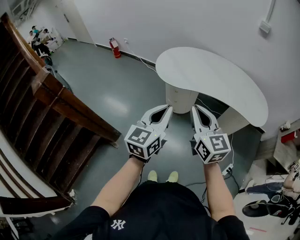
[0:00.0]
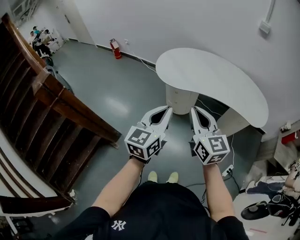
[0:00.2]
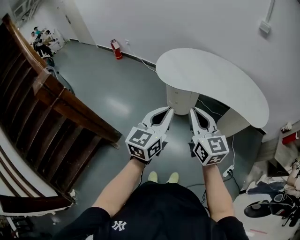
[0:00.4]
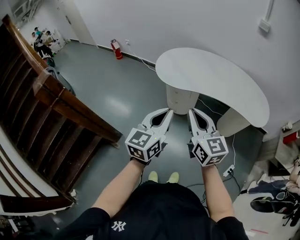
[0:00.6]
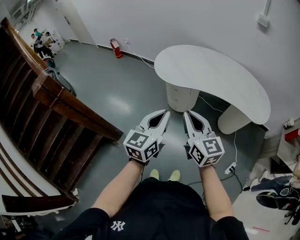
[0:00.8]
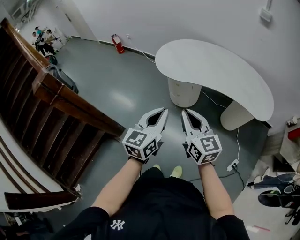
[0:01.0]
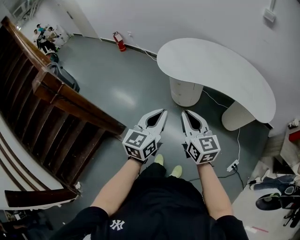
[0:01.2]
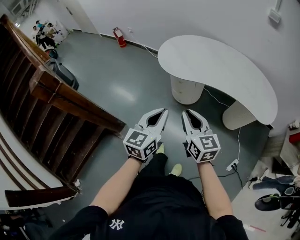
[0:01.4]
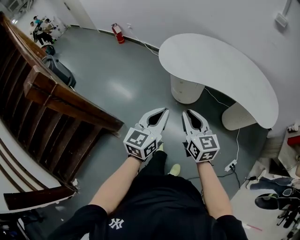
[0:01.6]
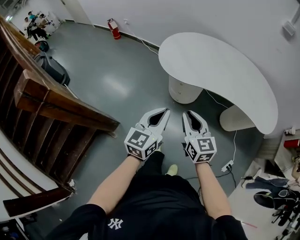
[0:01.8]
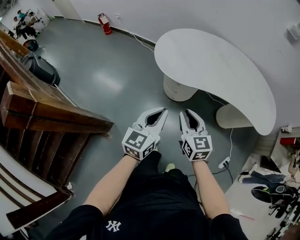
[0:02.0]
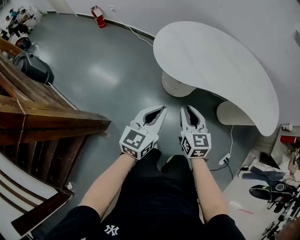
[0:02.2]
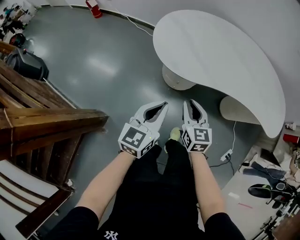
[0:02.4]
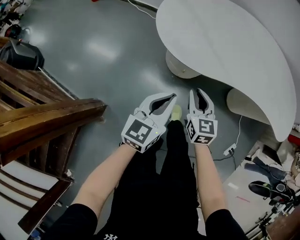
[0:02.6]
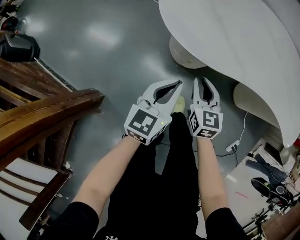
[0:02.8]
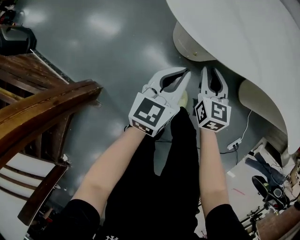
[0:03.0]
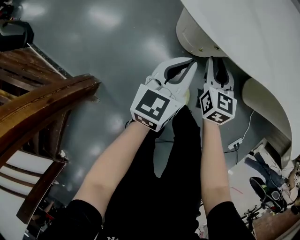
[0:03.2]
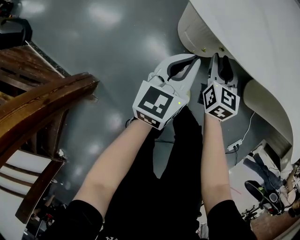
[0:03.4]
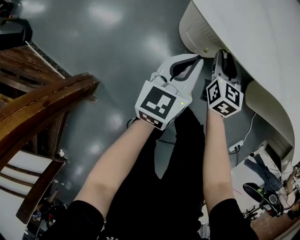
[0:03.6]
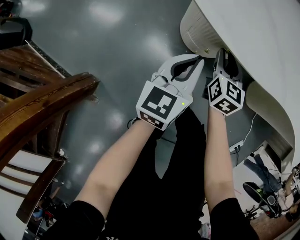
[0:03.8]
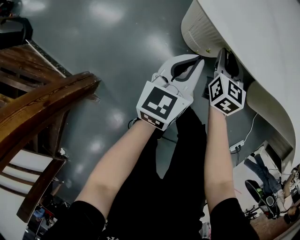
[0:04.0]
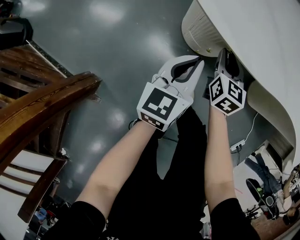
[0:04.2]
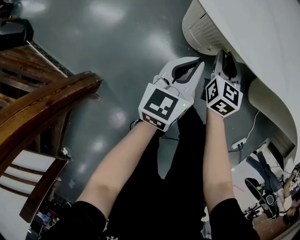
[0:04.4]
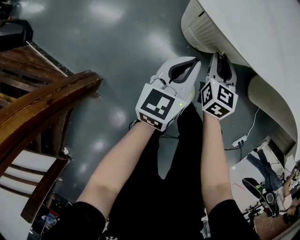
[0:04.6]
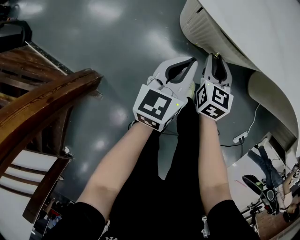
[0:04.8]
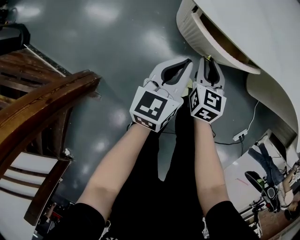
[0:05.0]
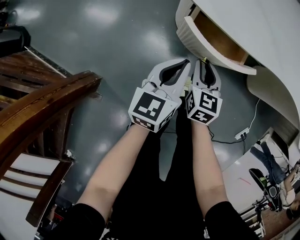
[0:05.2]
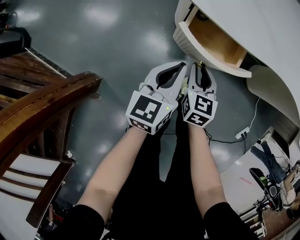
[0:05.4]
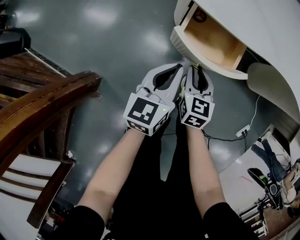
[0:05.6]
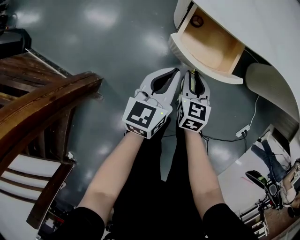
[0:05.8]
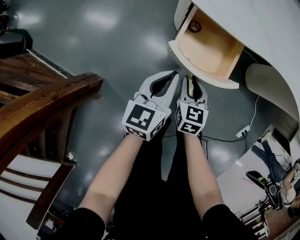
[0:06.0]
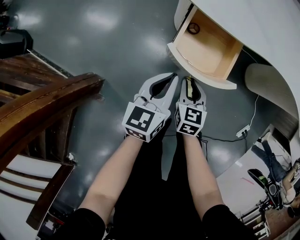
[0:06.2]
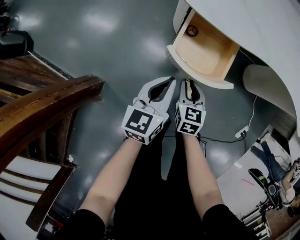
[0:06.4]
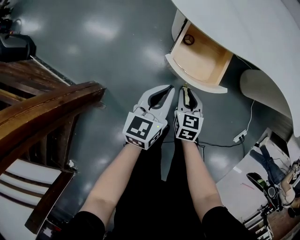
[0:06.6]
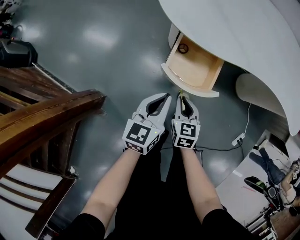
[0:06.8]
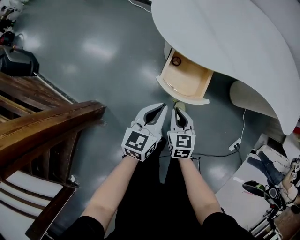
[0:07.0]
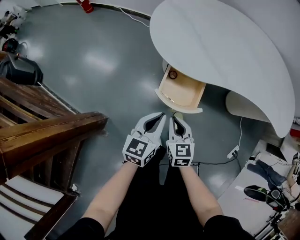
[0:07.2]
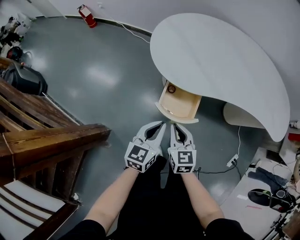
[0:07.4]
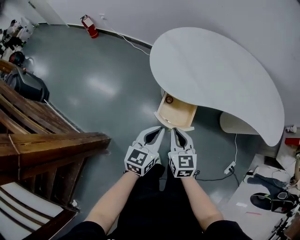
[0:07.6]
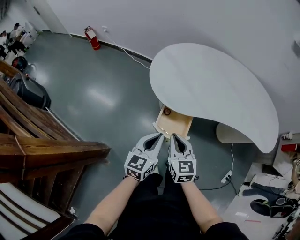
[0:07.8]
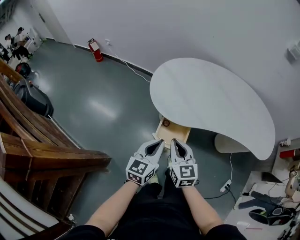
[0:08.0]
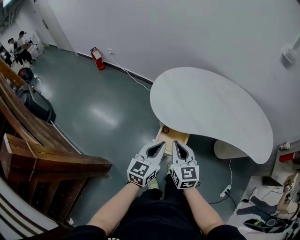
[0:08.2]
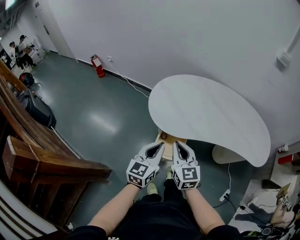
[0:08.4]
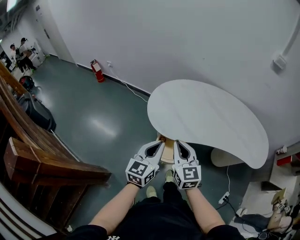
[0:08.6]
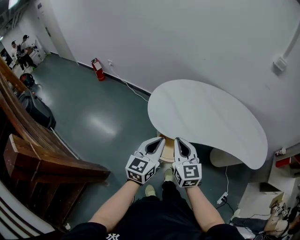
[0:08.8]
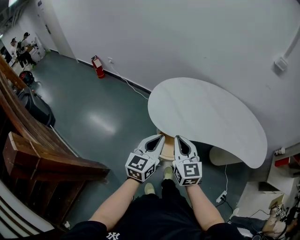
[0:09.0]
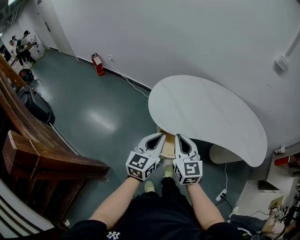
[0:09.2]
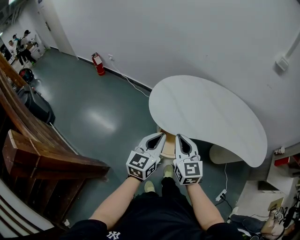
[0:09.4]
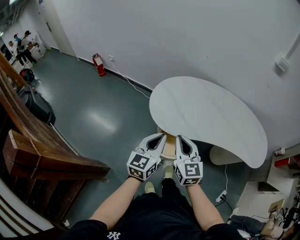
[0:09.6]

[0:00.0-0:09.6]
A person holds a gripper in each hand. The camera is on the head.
0:00.0 to 0:01.6: The left gripper moves downward, about 10 cm; the right gripper travels downward and forward by about 15 cm.
0:01.6 to 0:03.2: The grippers both shift downward and forward by some 50 cm. The right gripper swivels roughly 30 degrees.
0:04.8 to 0:06.4: The grippers both shift backward by some 15 cm.
0:06.4 to 0:08.0: The grippers both shift upward by roughly 35 cm. The right gripper swivels approximately 20 degrees.
0:08.0 to 0:09.6: The two grippers go about 10 cm upward.

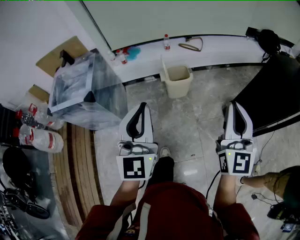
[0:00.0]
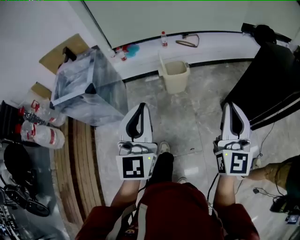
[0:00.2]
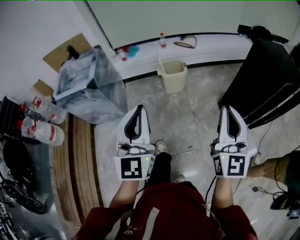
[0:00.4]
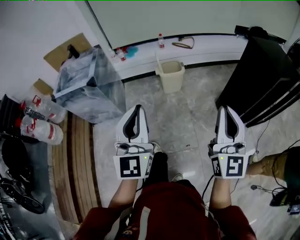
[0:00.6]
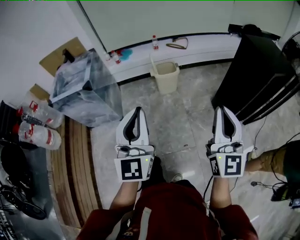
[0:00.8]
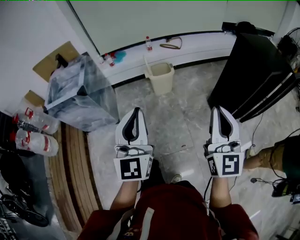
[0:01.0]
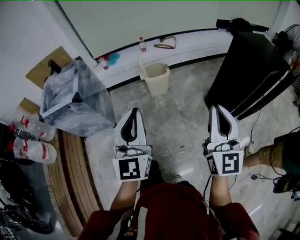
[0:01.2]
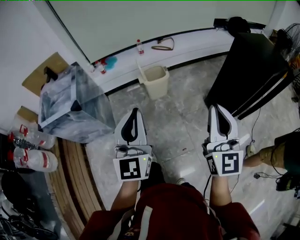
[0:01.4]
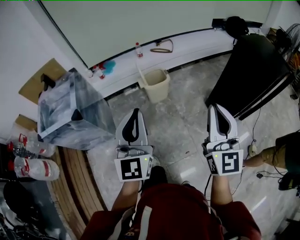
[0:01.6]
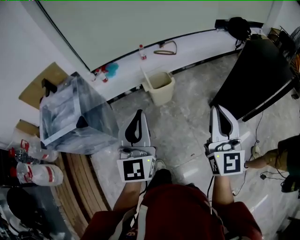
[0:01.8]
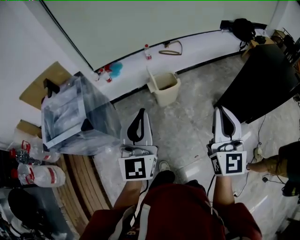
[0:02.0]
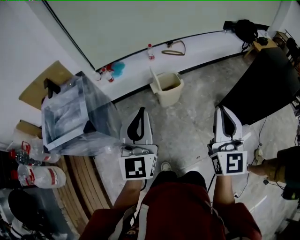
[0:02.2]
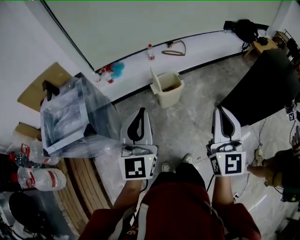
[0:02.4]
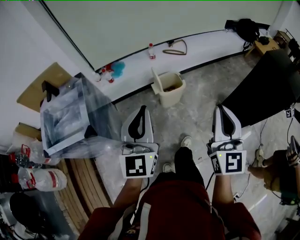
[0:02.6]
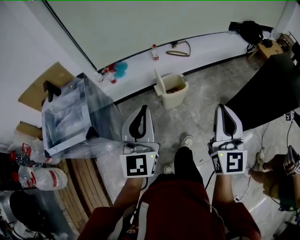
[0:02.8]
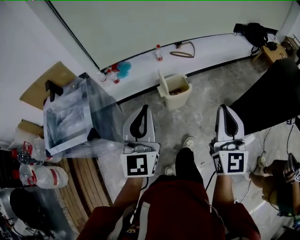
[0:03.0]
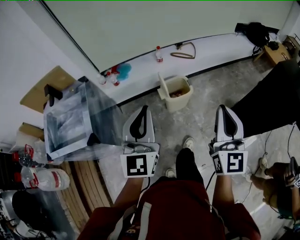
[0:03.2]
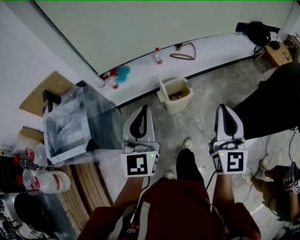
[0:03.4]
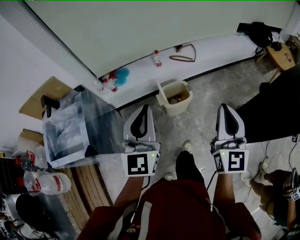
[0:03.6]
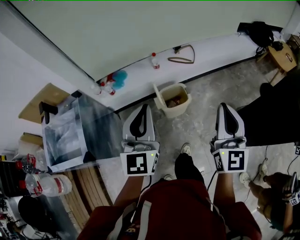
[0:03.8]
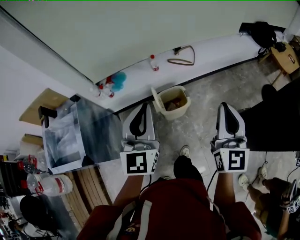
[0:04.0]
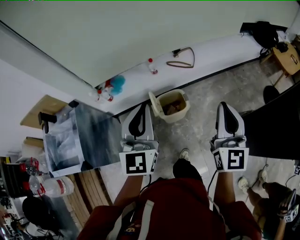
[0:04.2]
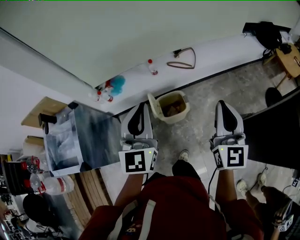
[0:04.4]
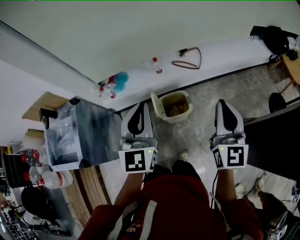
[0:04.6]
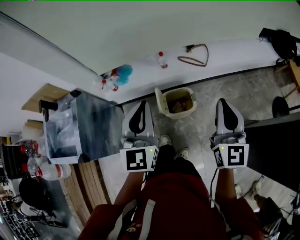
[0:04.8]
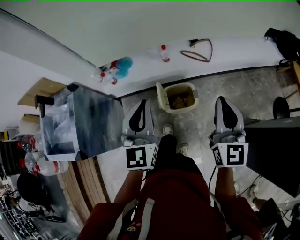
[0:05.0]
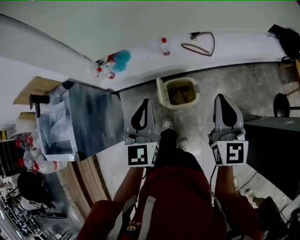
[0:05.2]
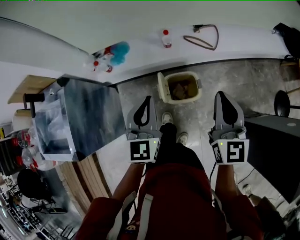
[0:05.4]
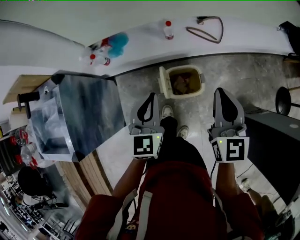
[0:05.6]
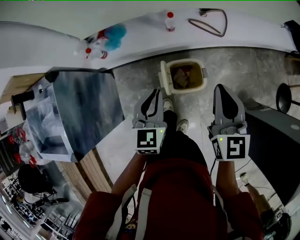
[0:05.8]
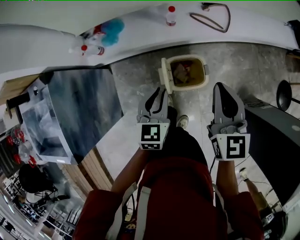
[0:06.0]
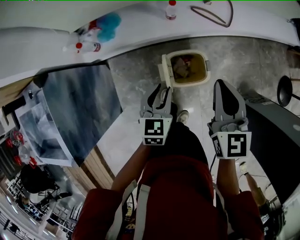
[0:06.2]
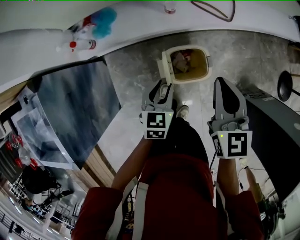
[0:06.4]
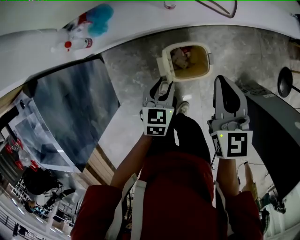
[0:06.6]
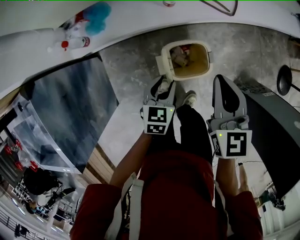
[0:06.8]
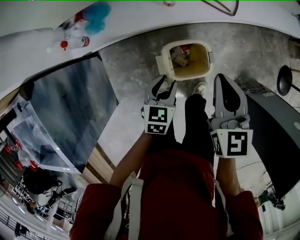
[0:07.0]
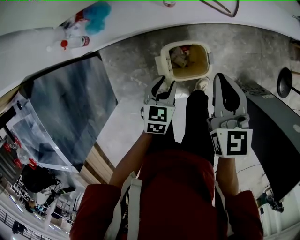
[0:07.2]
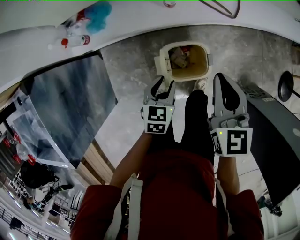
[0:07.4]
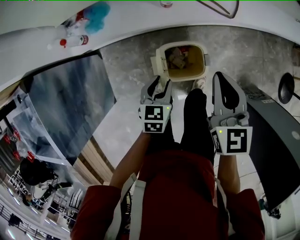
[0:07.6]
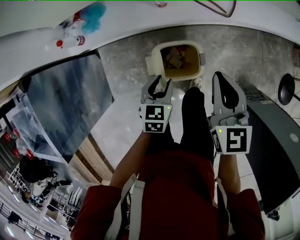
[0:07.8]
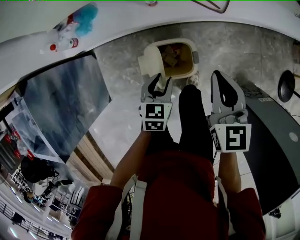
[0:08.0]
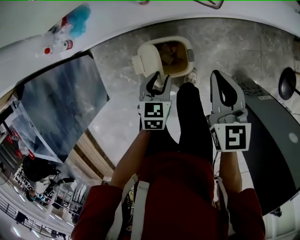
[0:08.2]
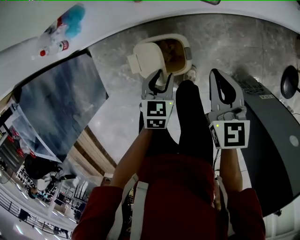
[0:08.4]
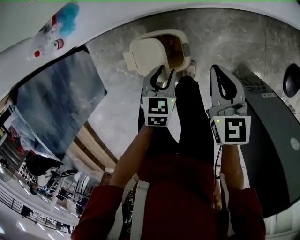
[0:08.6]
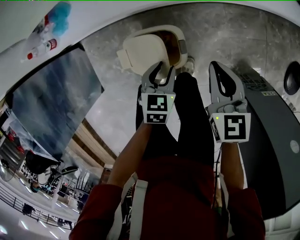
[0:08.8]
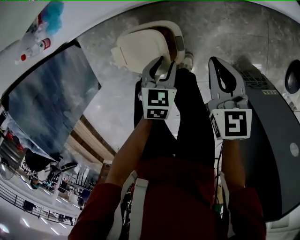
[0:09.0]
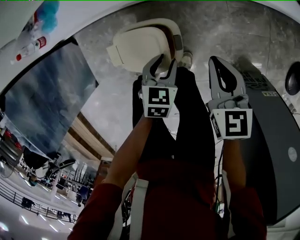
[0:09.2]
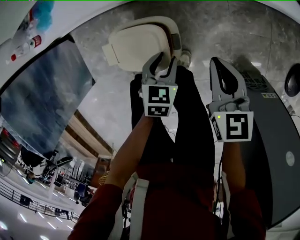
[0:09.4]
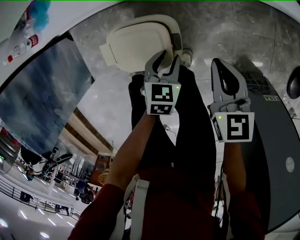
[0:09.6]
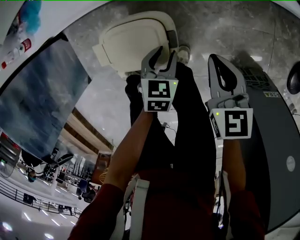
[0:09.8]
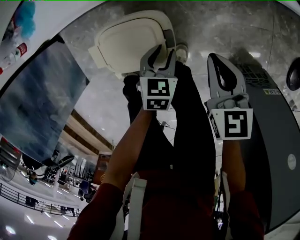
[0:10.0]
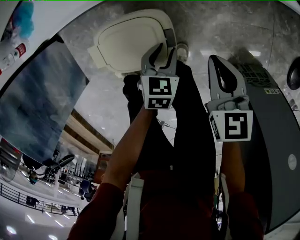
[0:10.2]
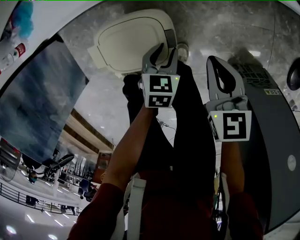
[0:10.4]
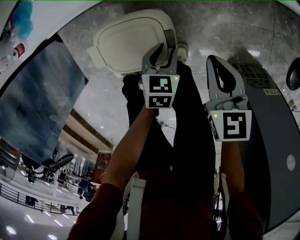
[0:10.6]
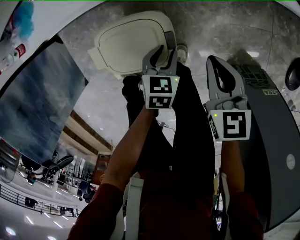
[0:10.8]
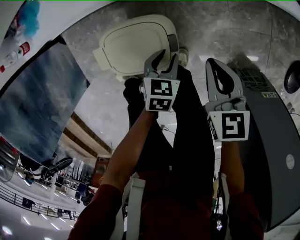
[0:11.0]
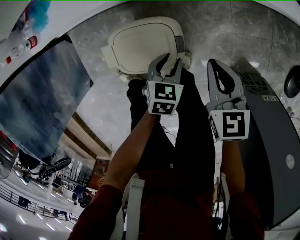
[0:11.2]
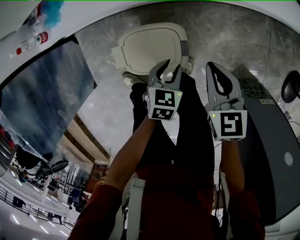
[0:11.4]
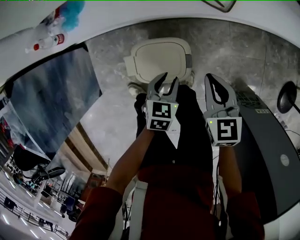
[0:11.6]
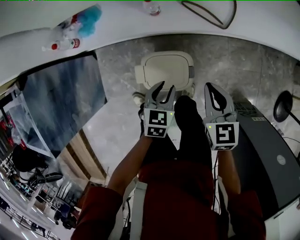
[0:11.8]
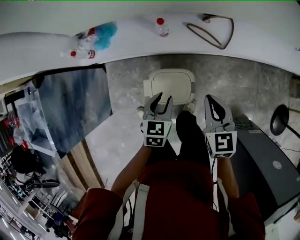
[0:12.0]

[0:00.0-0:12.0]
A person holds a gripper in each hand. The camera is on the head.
0:00.0 to 0:01.6: The right gripper goes backward and returns, about 20 cm each way. The left gripper moves roughly 20 cm backward and comes back.
0:01.6 to 0:03.0: The grippers both shift forward and to the left by about 25 cm.
0:03.0 to 0:04.4: Both grippers travel together forward and to the right, approximately 30 cm.
0:04.4 to 0:06.0: The right gripper shifts about 30 cm forward, downward and to the left, and rotates roughly 30 degrees; the left gripper is displaced downward by roughly 35 cm, and tilts its fingers about 30 degrees downward.
0:06.0 to 0:07.6: The right gripper is displaced downward and forward by approximately 10 cm. The left gripper heads downward, covering some 15 cm, and opens up.
0:07.6 to 0:09.0: The grippers both shift to the right and downward by about 20 cm.
0:09.0 to 0:10.4: Both grippers move downward, some 10 cm.
0:10.4 to 0:12.0: The grippers both shift upward and to the left by about 30 cm.

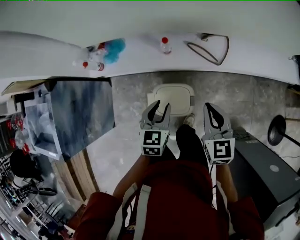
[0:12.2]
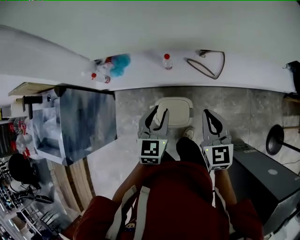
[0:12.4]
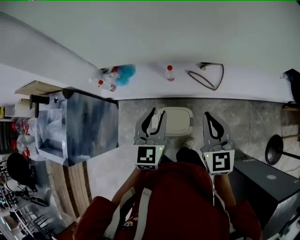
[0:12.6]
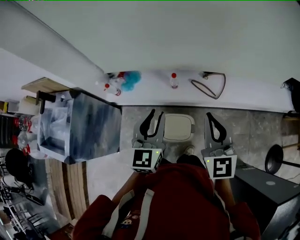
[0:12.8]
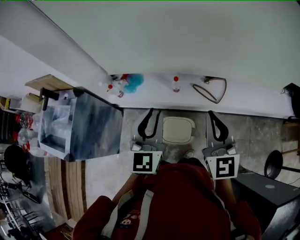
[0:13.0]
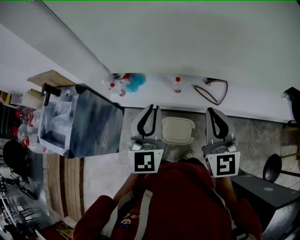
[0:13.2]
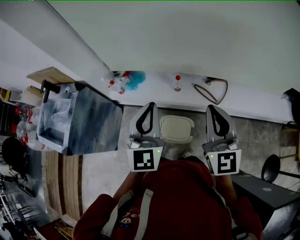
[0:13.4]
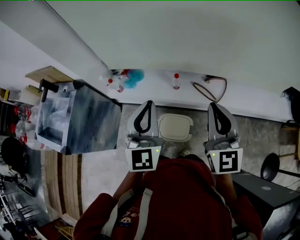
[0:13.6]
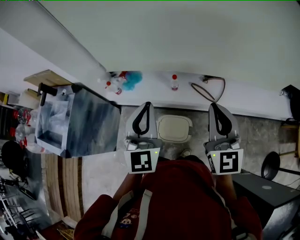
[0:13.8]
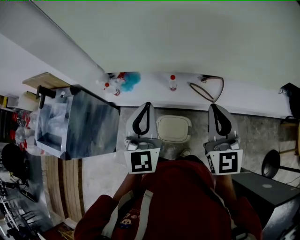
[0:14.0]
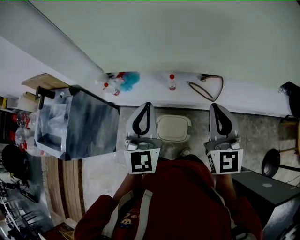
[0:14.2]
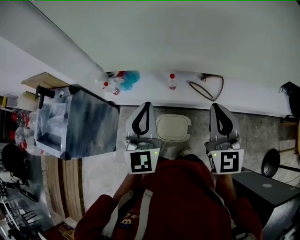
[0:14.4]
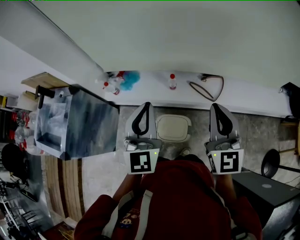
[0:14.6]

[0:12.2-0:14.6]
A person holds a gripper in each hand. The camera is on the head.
0:12.2 to 0:13.4: The grippers both shift upward by about 25 cm. The left gripper tips its fingers upward by about 40 degrees, and closes its fingers. The right gripper rotates some 30 degrees.
0:13.4 to 0:14.6: There are only small adjustments of the grippers.
